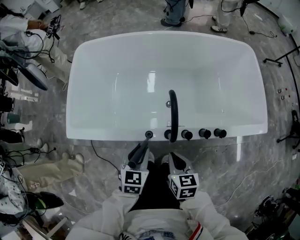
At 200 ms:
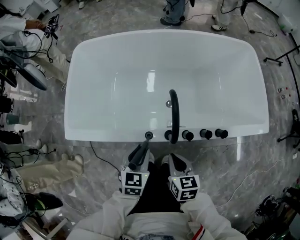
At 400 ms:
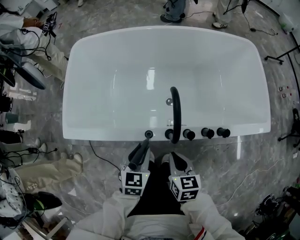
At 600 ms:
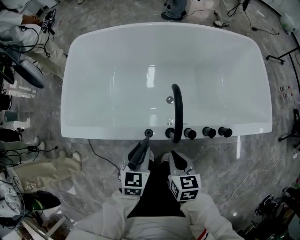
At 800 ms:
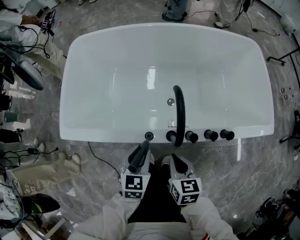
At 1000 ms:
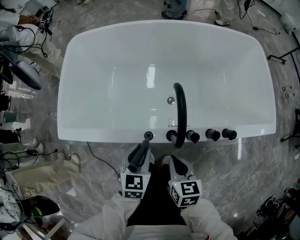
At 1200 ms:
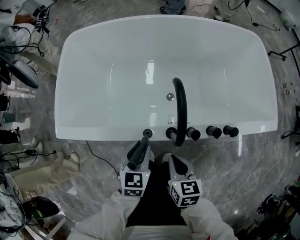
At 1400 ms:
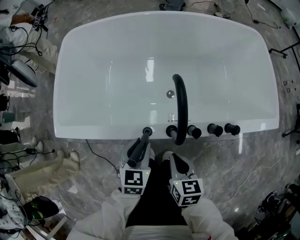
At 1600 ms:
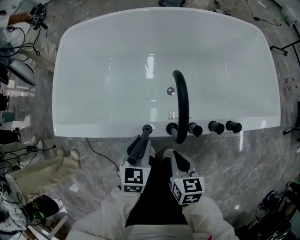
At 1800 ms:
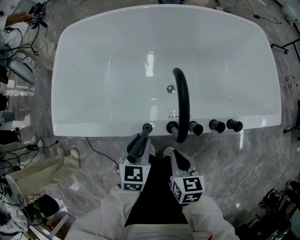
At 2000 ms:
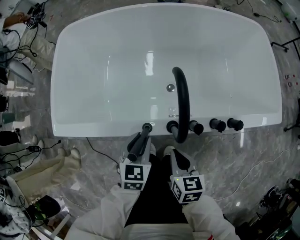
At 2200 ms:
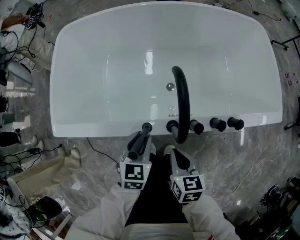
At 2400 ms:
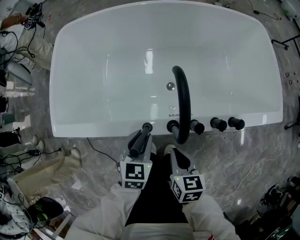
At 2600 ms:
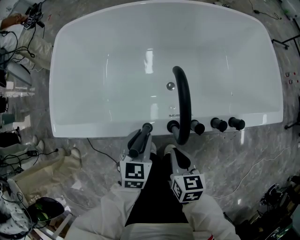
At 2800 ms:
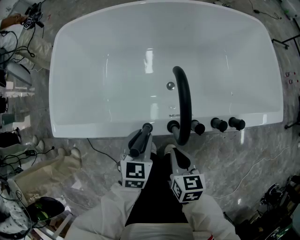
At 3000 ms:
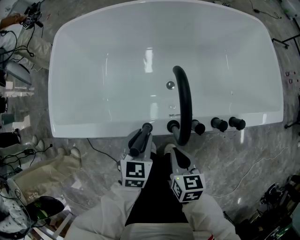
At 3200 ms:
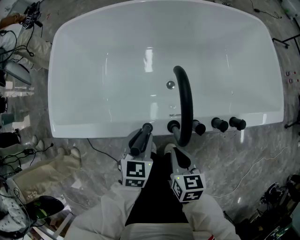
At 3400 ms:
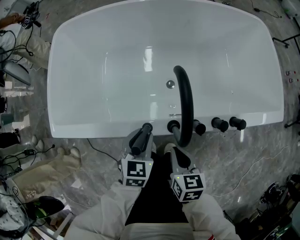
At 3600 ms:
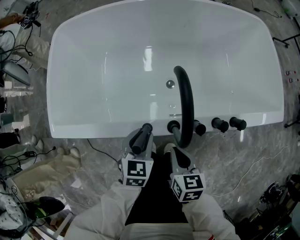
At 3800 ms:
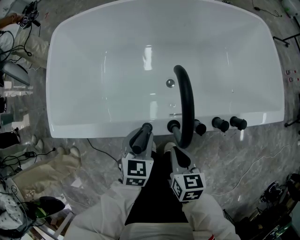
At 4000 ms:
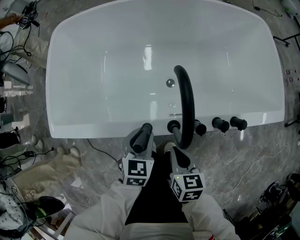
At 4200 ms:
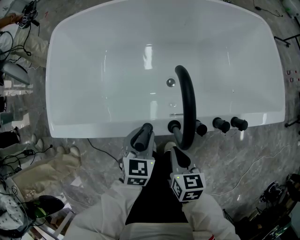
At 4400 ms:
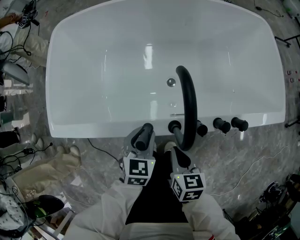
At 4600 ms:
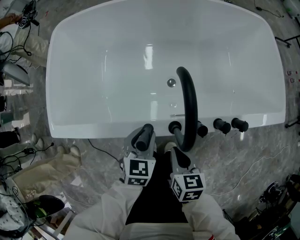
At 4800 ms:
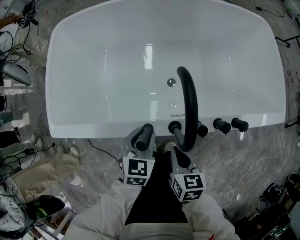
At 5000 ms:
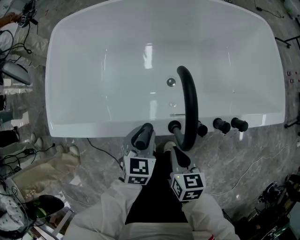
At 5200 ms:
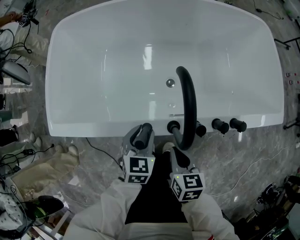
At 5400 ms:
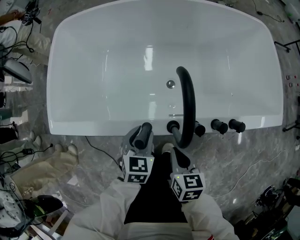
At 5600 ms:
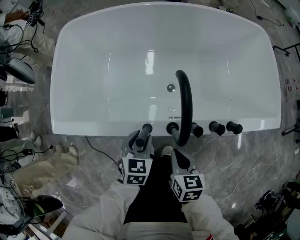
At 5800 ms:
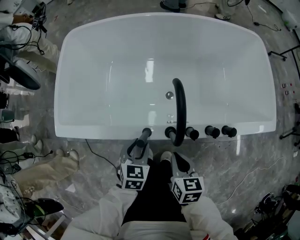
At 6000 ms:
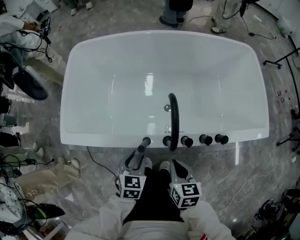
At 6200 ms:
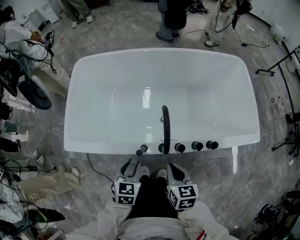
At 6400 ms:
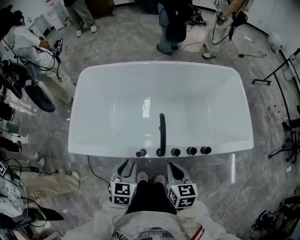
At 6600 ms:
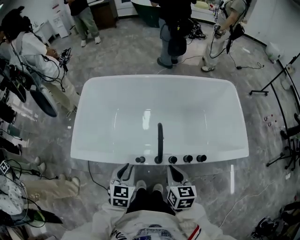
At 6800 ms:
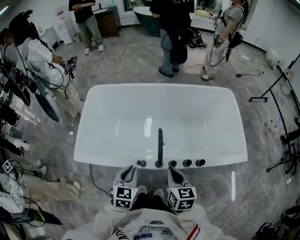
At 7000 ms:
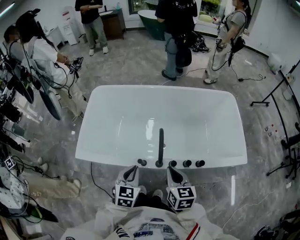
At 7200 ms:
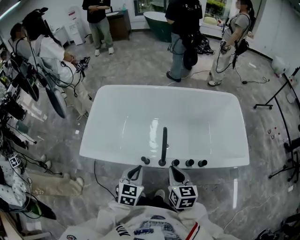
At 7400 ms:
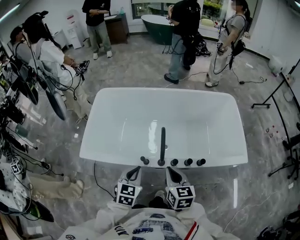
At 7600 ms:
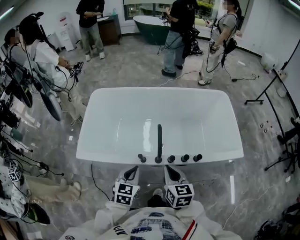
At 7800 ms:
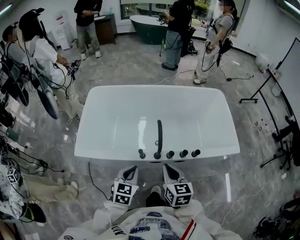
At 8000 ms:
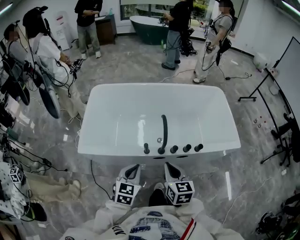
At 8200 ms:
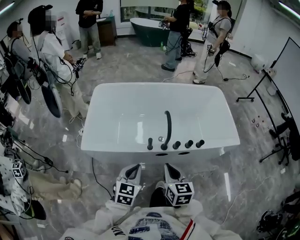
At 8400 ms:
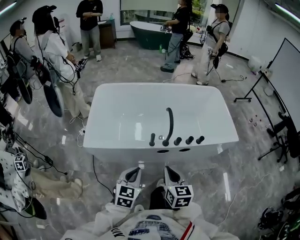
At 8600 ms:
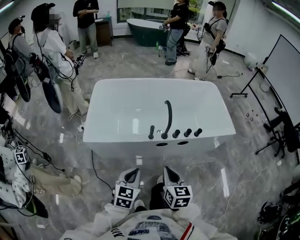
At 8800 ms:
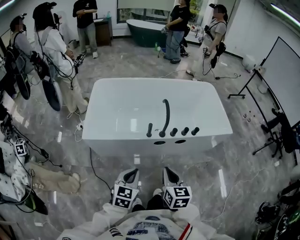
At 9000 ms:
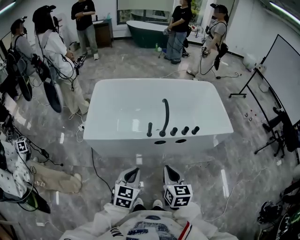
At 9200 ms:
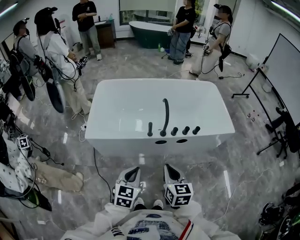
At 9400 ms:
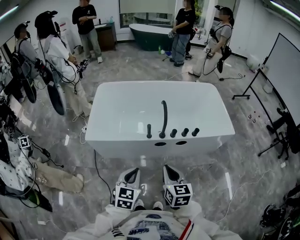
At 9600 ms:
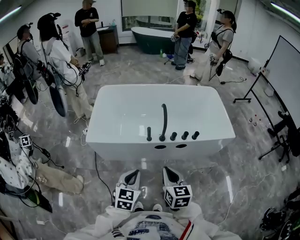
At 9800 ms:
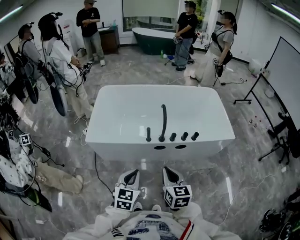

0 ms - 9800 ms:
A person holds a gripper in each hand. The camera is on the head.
0 ms - 1400 ms: Both grippers travel together downward, some 5 cm.
1400 ms - 5600 ms: The grippers move only a little.
5600 ms - 7000 ms: The two grippers go roughly 25 cm upward. The left gripper closes its fingers, while the right gripper turns by some 20 degrees.
7000 ms - 8400 ms: Both grippers travel together backward and to the left, some 25 cm.
8400 ms - 9800 ms: Both grippers move backward, about 5 cm.

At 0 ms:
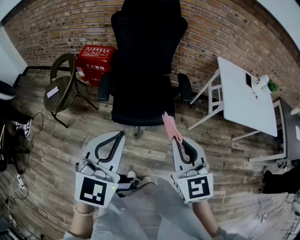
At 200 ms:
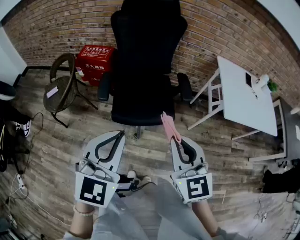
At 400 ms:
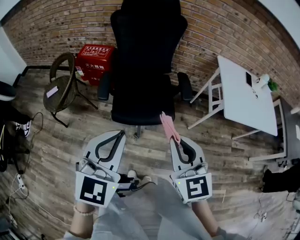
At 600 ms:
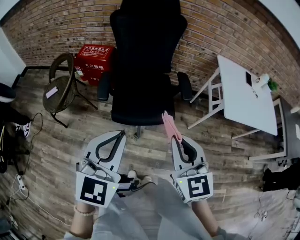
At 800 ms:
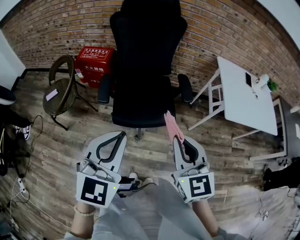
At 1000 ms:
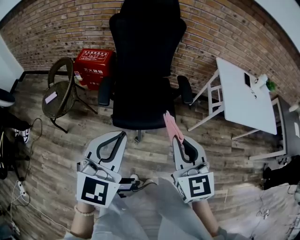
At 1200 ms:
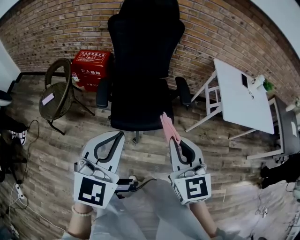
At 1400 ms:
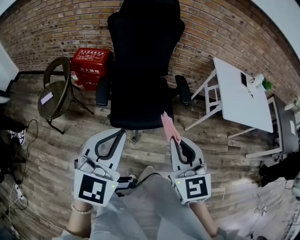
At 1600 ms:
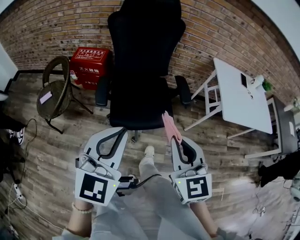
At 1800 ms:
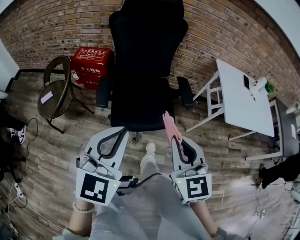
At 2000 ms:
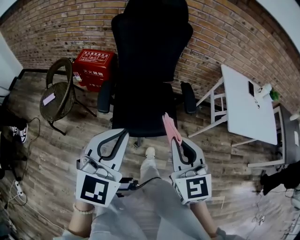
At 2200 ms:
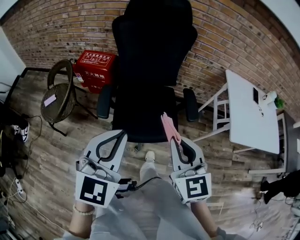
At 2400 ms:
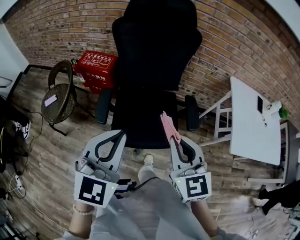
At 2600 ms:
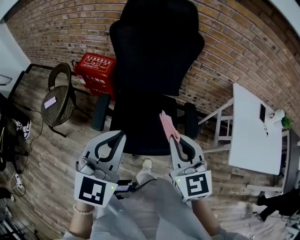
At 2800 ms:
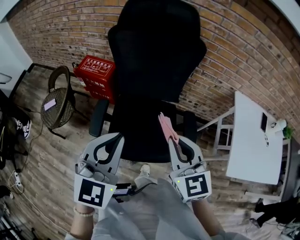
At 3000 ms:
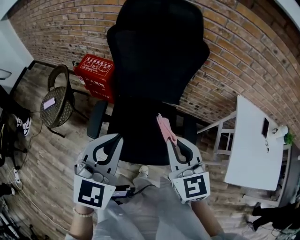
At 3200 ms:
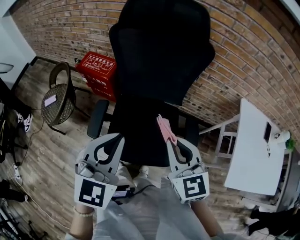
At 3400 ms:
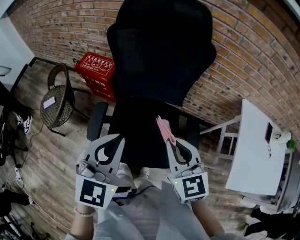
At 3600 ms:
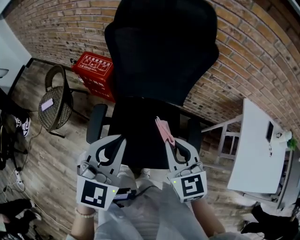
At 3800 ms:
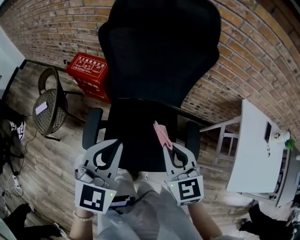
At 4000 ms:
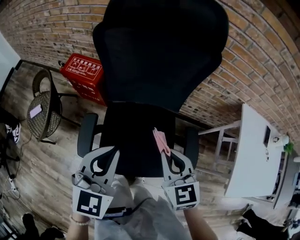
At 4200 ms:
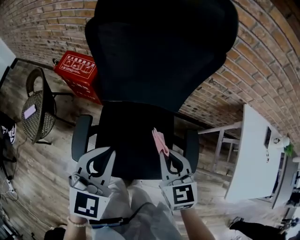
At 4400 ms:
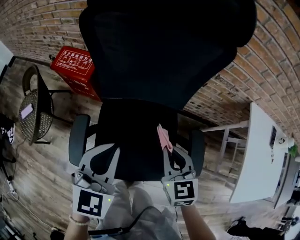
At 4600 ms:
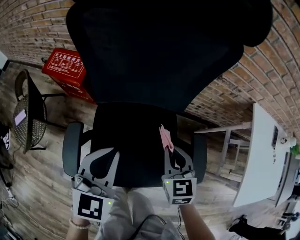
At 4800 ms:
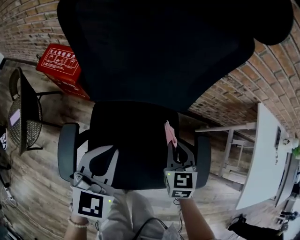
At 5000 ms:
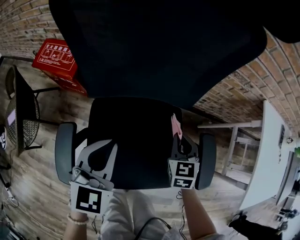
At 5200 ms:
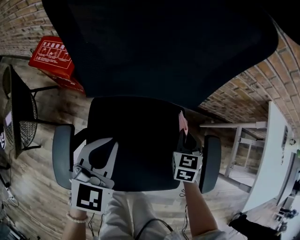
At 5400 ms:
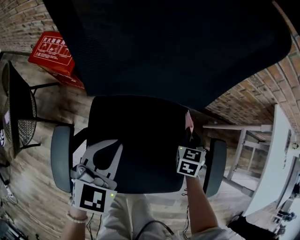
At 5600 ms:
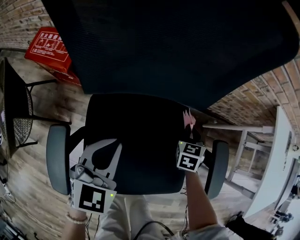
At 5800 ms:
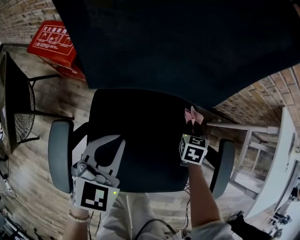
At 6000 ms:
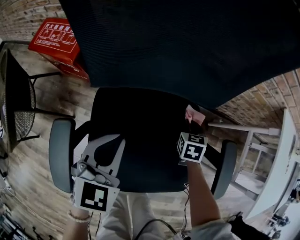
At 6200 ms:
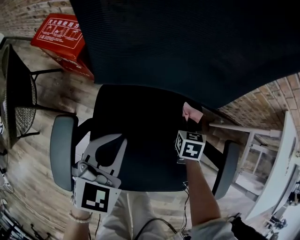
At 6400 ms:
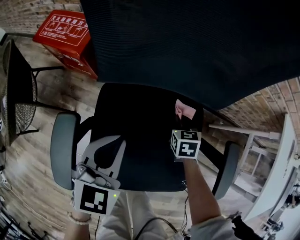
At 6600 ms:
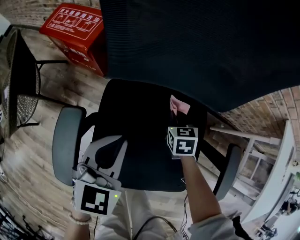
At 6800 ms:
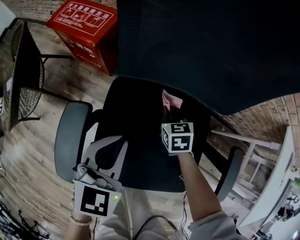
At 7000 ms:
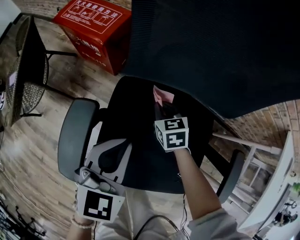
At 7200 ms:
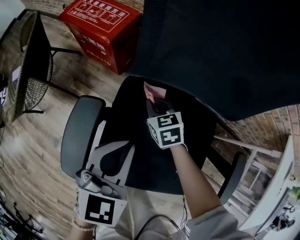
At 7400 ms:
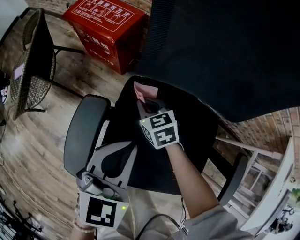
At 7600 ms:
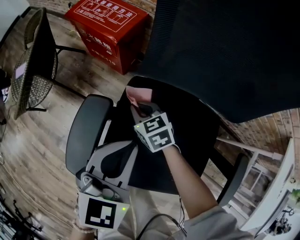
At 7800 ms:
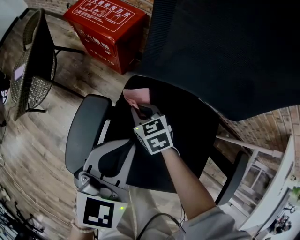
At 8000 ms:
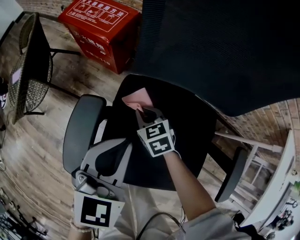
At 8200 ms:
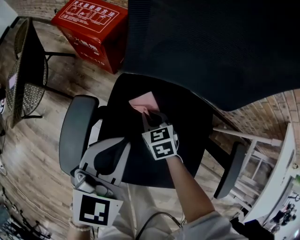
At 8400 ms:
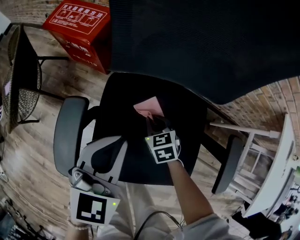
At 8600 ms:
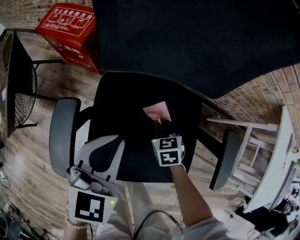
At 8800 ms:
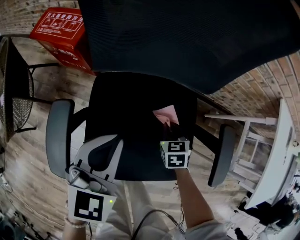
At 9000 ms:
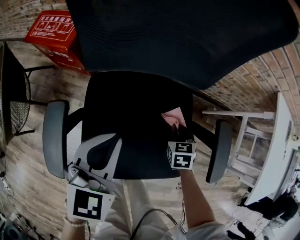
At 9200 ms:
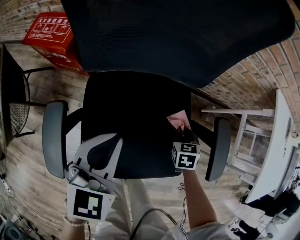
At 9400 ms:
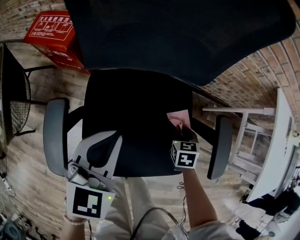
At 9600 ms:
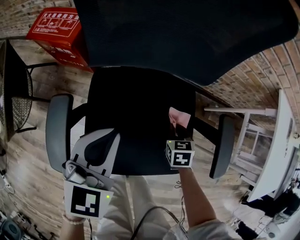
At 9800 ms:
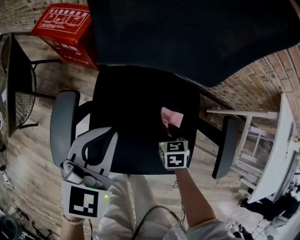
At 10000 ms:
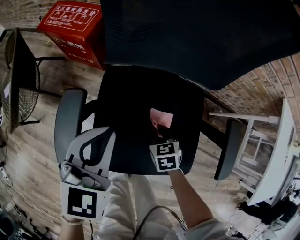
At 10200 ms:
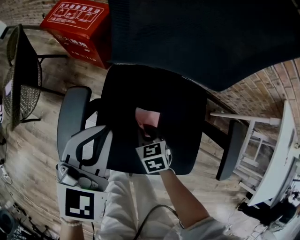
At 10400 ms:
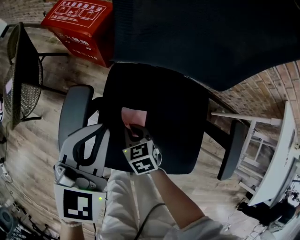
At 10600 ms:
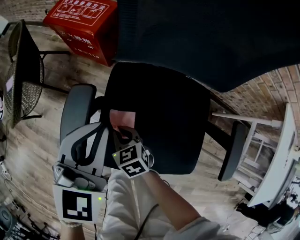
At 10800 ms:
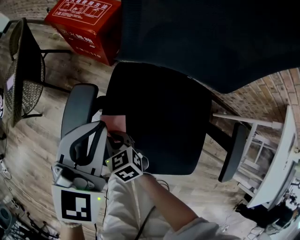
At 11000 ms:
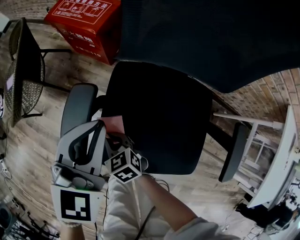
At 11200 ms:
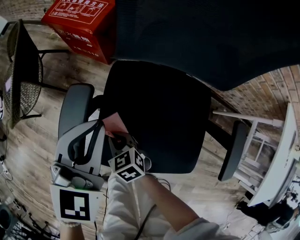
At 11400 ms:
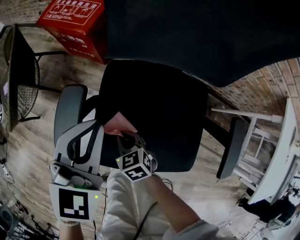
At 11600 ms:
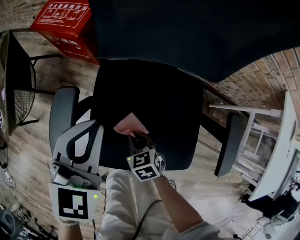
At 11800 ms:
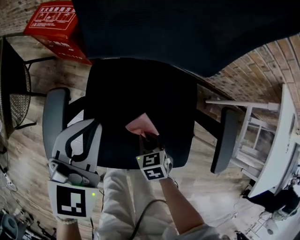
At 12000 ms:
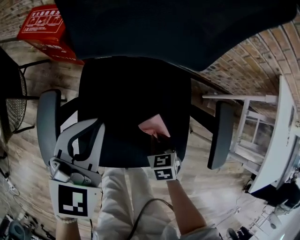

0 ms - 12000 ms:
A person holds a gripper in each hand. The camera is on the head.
0 ms - 1600 ms: Both grippers travel together to the left, about 5 cm.
1600 ms - 3000 ms: Both grippers move forward, some 35 cm.
3000 ms - 4400 ms: The left gripper moves forward and downward, approximately 25 cm; the right gripper moves downward and forward, about 25 cm.
4400 ms - 6000 ms: The right gripper heads downward and forward, covering approximately 40 cm, and turns by some 30 degrees; the left gripper goes approximately 25 cm downward.
6000 ms - 7600 ms: The left gripper changes place by roughly 10 cm; the right gripper changes place by some 35 cm, and turns by about 50 degrees.
7600 ms - 9000 ms: The left gripper changes place by some 10 cm, while the right gripper ends up roughly 35 cm from where it was, and turns by approximately 50 degrees.
9000 ms - 10400 ms: The left gripper ends up about 10 cm from where it was. The right gripper moves about 30 cm, and turns by about 30 degrees.
10400 ms - 12000 ms: The right gripper changes place by approximately 20 cm, and turns by roughly 20 degrees, while the left gripper ends up some 10 cm from where it was.

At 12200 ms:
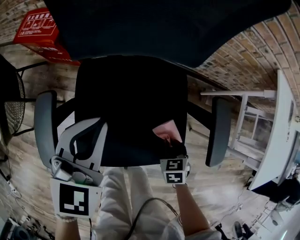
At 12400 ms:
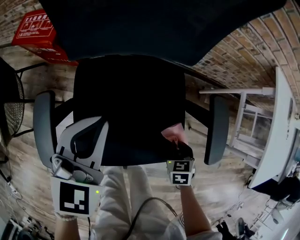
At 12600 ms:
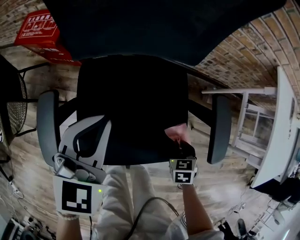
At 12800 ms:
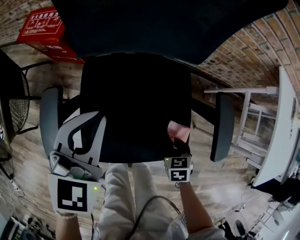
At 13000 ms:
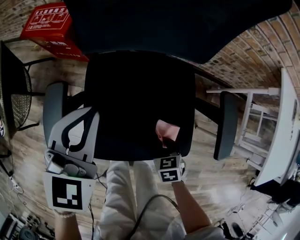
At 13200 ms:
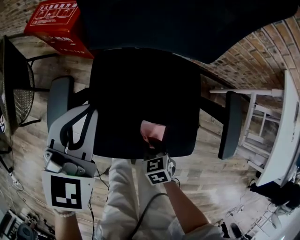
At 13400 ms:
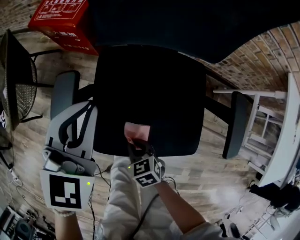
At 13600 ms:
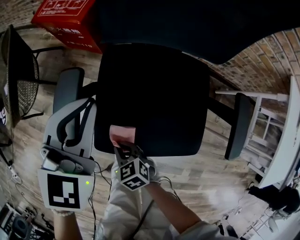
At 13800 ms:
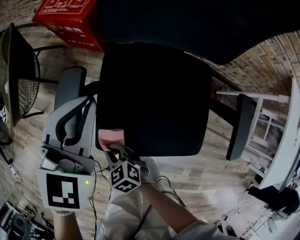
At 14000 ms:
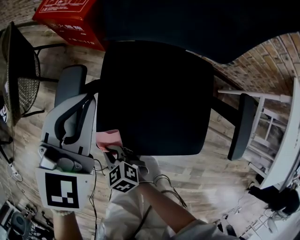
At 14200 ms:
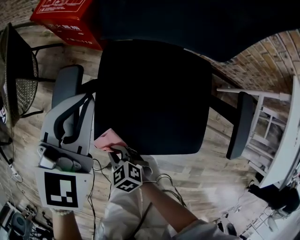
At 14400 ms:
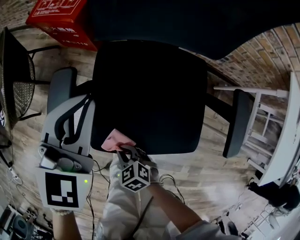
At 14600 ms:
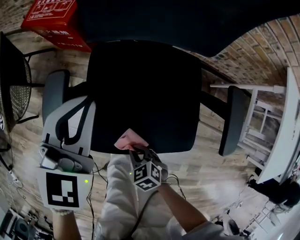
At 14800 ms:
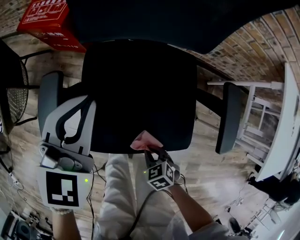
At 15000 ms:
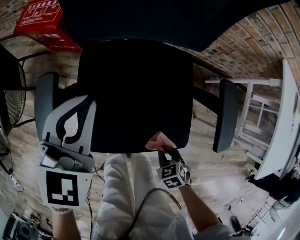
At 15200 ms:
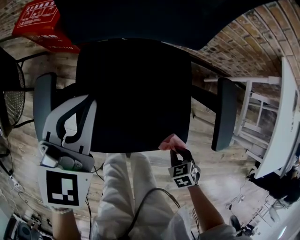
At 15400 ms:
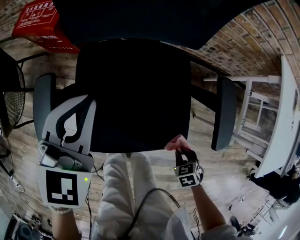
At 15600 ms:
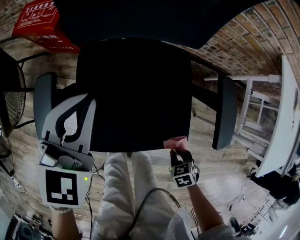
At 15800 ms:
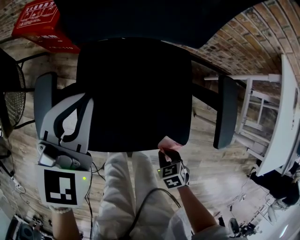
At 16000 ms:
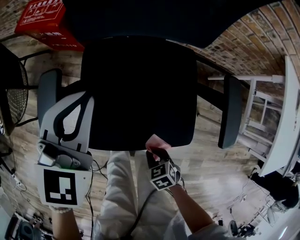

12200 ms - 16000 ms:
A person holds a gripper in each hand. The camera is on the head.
12200 ms - 13400 ms: The right gripper shifts by some 25 cm, and changes its angle by about 30 degrees. The left gripper changes place by some 10 cm.
13400 ms - 14800 ms: The right gripper travels backward and to the right by roughly 15 cm.
